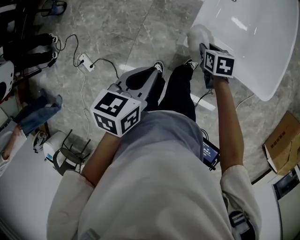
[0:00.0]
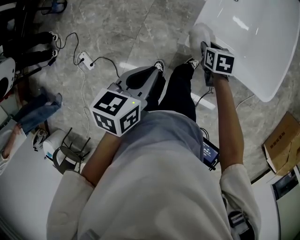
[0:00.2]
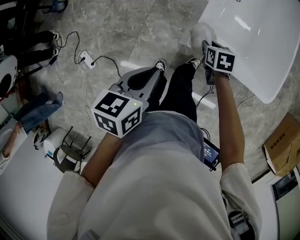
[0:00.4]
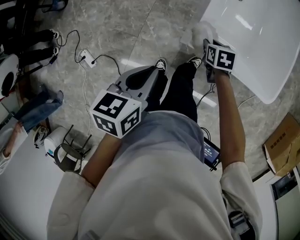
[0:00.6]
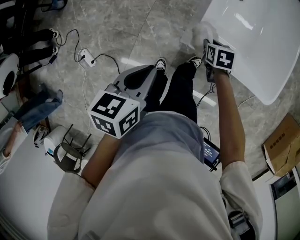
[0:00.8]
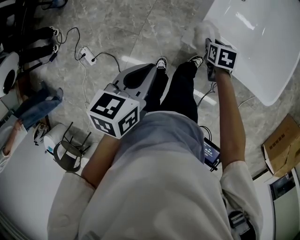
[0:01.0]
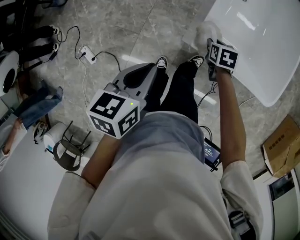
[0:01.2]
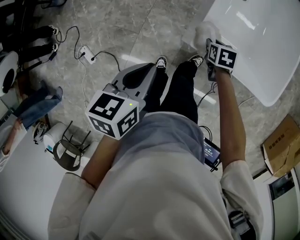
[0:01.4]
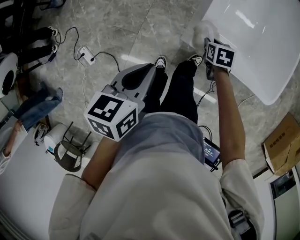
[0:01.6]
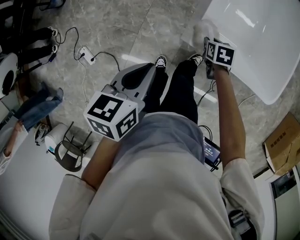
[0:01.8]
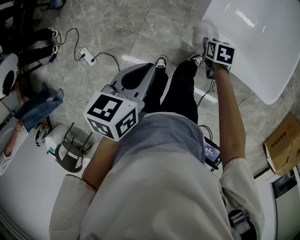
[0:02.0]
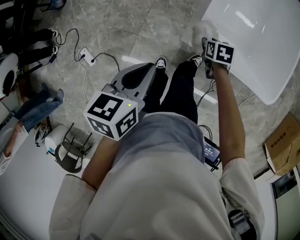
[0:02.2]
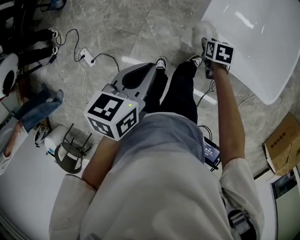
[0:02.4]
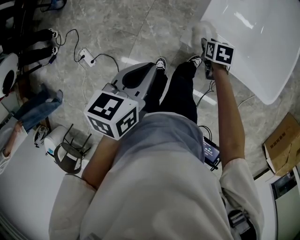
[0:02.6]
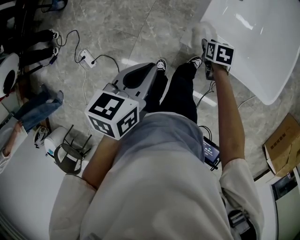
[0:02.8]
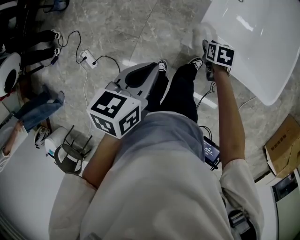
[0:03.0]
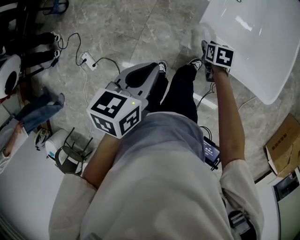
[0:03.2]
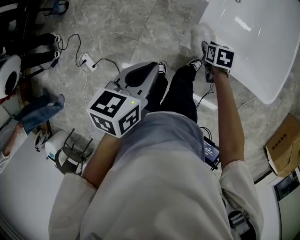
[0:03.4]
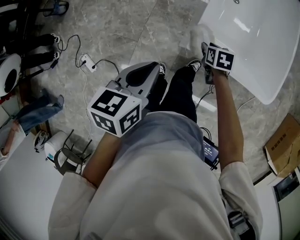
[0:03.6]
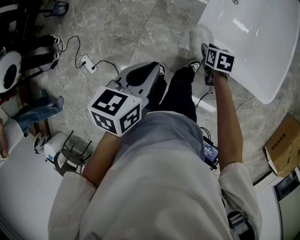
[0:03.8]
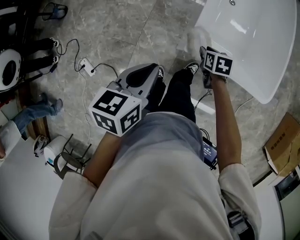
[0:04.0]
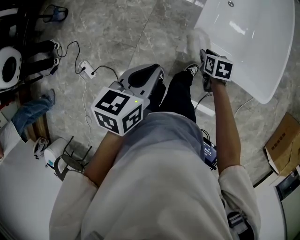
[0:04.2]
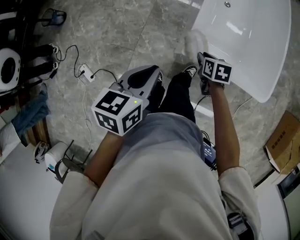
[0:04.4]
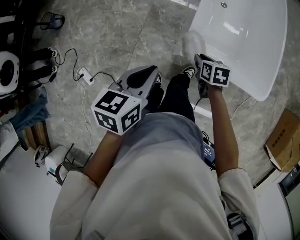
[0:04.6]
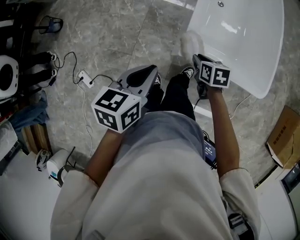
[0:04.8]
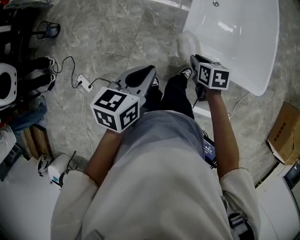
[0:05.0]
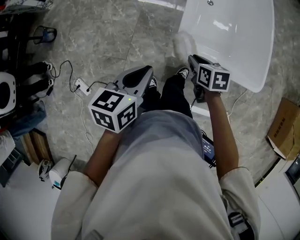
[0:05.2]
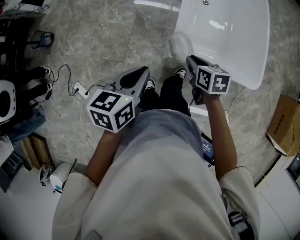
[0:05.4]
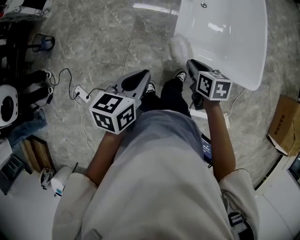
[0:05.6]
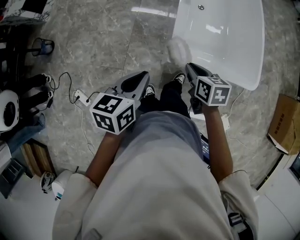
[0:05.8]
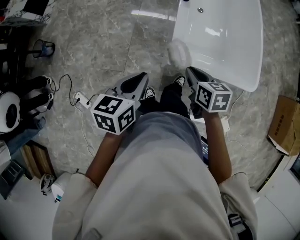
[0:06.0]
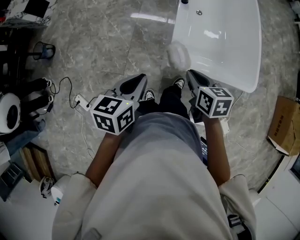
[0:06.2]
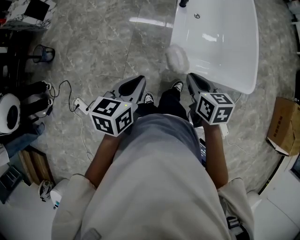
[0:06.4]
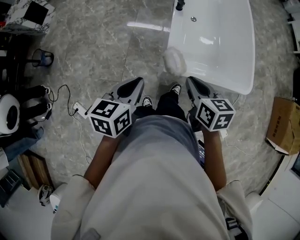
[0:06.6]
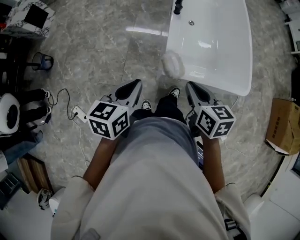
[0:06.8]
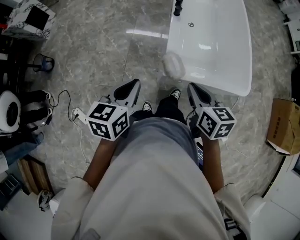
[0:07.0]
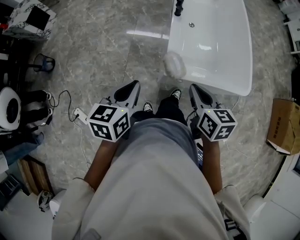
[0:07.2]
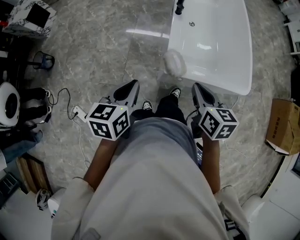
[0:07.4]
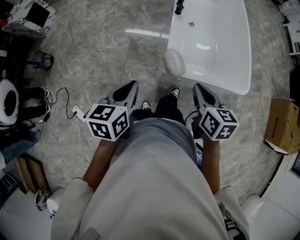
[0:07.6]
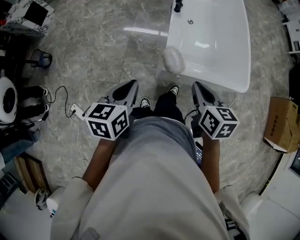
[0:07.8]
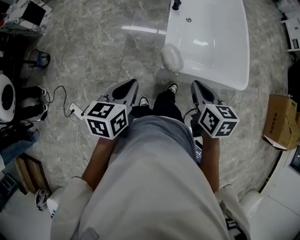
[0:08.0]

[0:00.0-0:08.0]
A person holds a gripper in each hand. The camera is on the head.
0.0 to 1.6 s: The right gripper shifts some 5 cm downward.
1.6 to 3.2 s: There are only small adjustments of the grippers.
3.2 to 4.8 s: The right gripper moves upward, roughly 10 cm.
4.8 to 6.4 s: The right gripper is displaced upward by about 15 cm.
6.4 to 8.0 s: The right gripper is displaced backward and upward by about 10 cm.

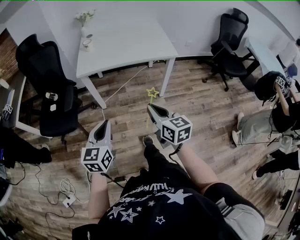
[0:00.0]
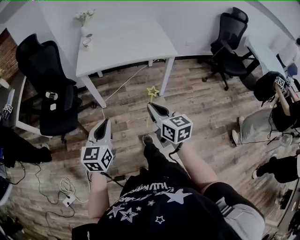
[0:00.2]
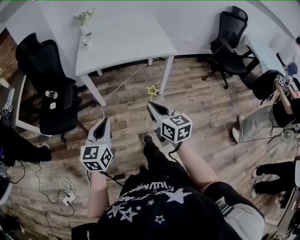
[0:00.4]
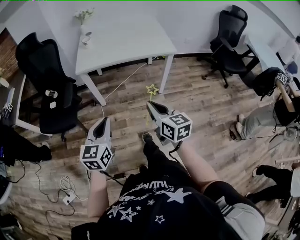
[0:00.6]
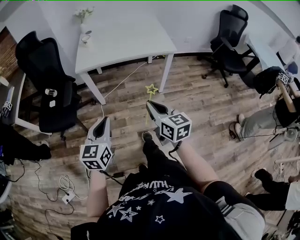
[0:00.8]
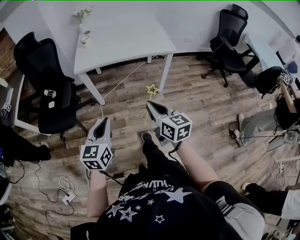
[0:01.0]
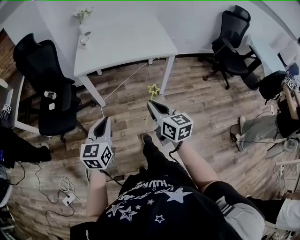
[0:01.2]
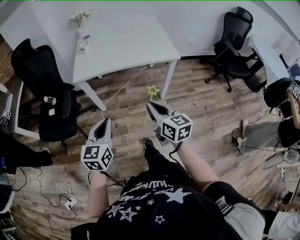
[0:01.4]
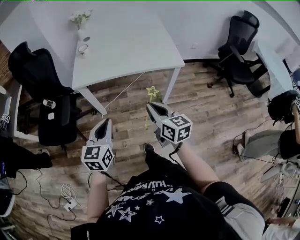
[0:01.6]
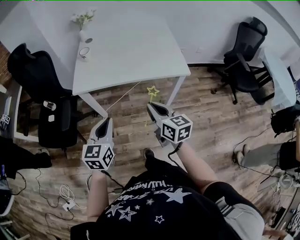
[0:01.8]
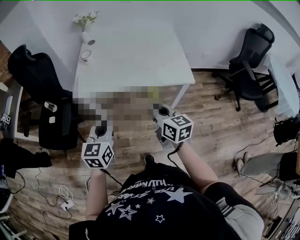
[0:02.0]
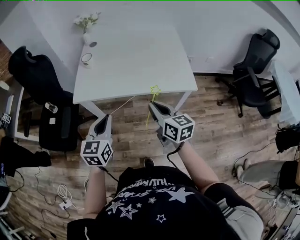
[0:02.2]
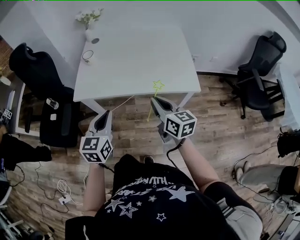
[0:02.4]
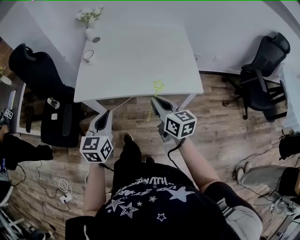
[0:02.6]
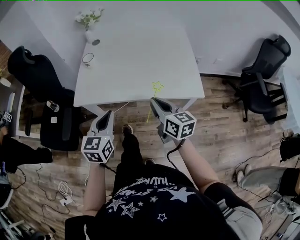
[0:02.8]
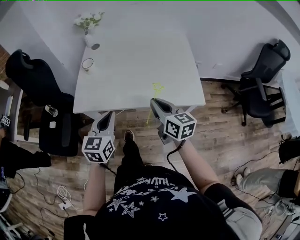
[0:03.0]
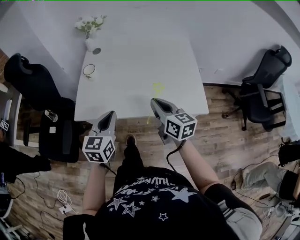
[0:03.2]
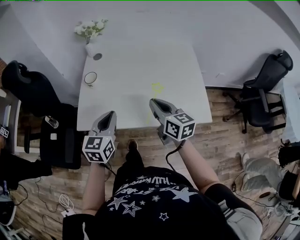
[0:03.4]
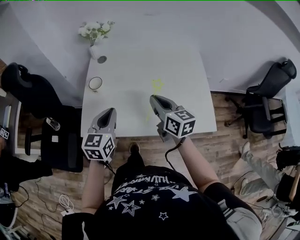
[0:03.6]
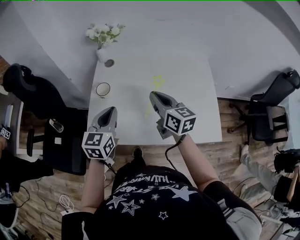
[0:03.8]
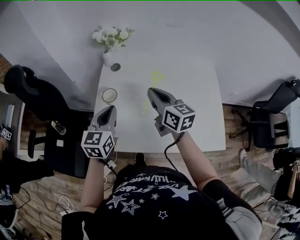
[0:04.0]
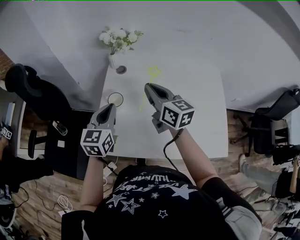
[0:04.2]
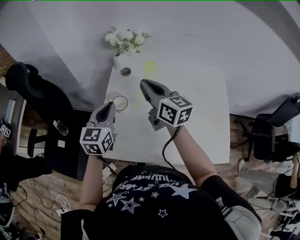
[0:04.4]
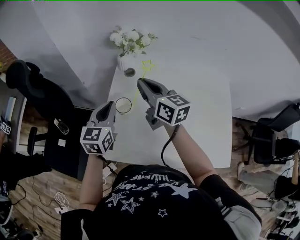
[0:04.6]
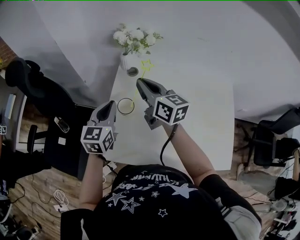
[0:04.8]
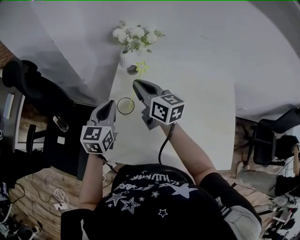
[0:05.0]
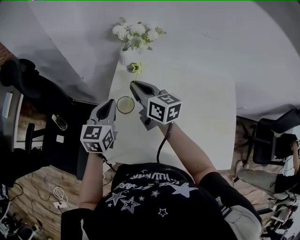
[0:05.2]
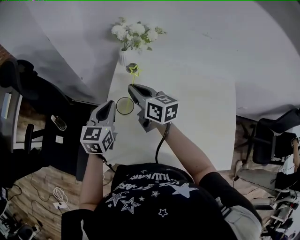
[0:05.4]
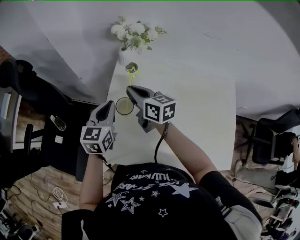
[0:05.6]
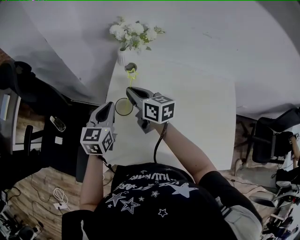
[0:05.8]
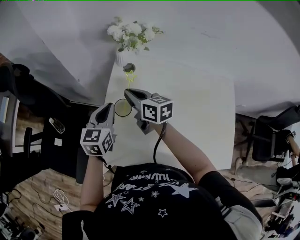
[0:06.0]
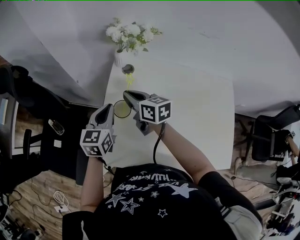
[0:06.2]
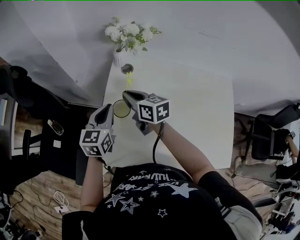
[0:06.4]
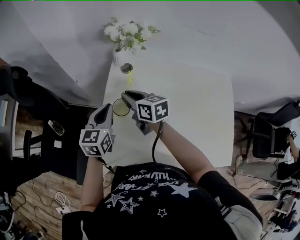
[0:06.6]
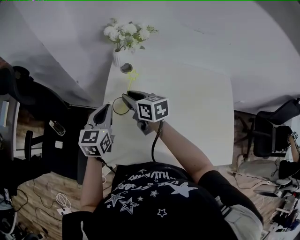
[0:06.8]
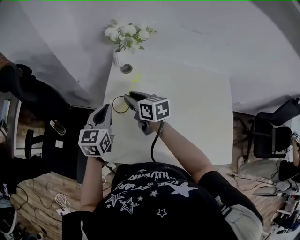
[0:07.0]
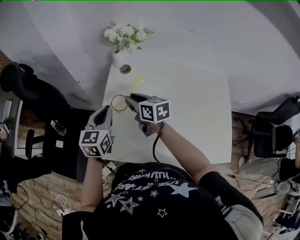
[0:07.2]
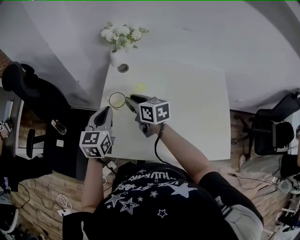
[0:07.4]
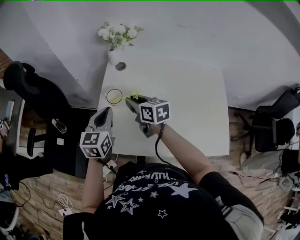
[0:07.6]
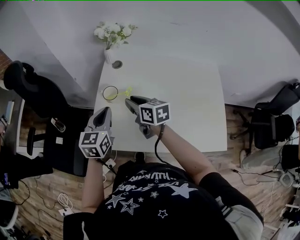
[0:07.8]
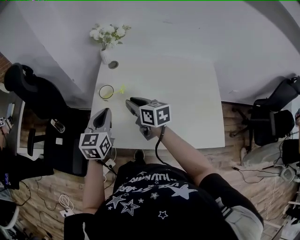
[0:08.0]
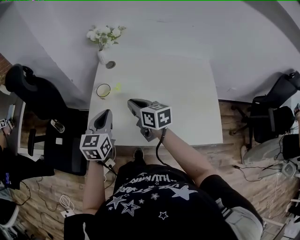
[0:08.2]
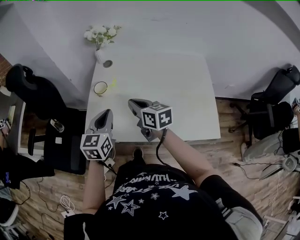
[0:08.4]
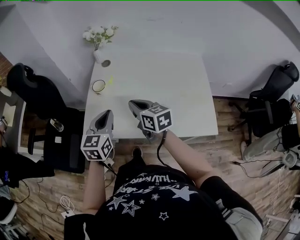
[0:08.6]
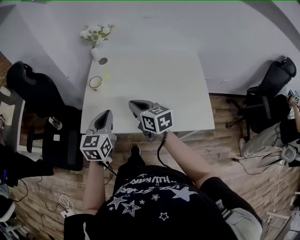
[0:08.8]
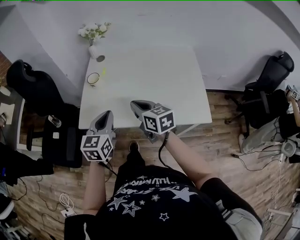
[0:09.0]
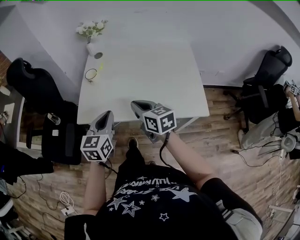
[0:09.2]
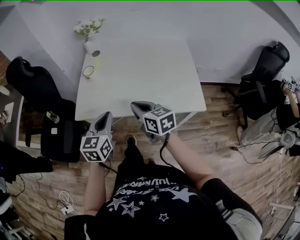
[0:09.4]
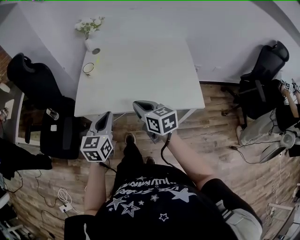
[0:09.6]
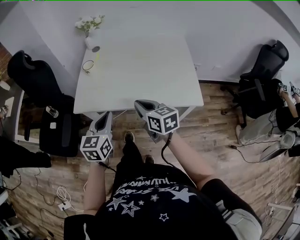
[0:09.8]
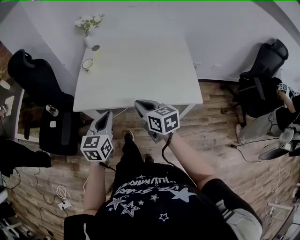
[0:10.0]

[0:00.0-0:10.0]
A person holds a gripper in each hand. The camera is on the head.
0.0 to 1.4 s: The grippers both shift forward by roughly 5 cm.
1.4 to 2.8 s: The two grippers go some 30 cm forward.
2.8 to 4.2 s: The right gripper travels forward and to the left by roughly 40 cm; the left gripper shifts some 35 cm forward.
4.2 to 5.8 s: The left gripper travels forward and downward by about 10 cm. The right gripper is displaced to the left, downward and forward by about 20 cm.
5.8 to 7.2 s: The right gripper ends up about 5 cm from where it was, and opens its fingers.
7.2 to 8.6 s: The right gripper goes some 20 cm backward, and closes its fingers; the left gripper goes about 20 cm backward and to the right.
8.6 to 10.0 s: The grippers both shift backward by approximately 20 cm.

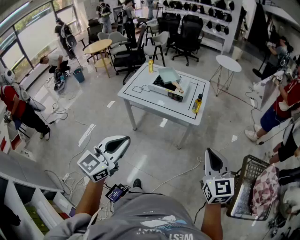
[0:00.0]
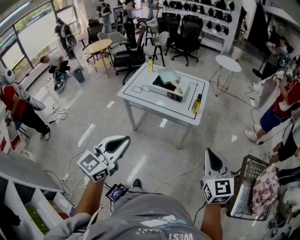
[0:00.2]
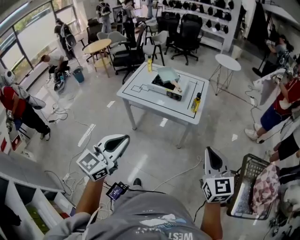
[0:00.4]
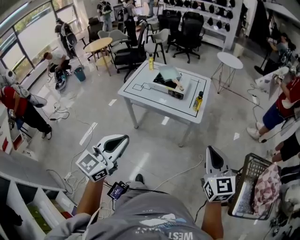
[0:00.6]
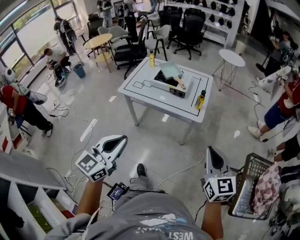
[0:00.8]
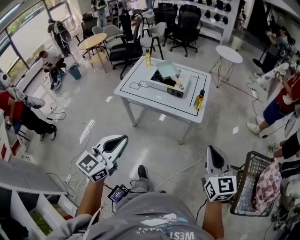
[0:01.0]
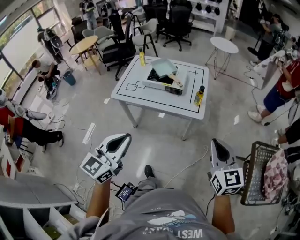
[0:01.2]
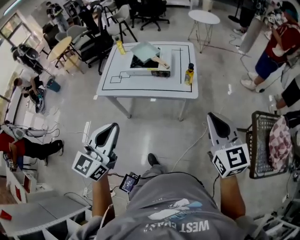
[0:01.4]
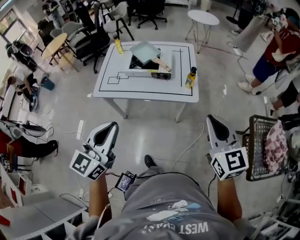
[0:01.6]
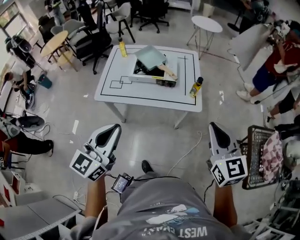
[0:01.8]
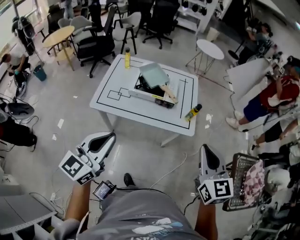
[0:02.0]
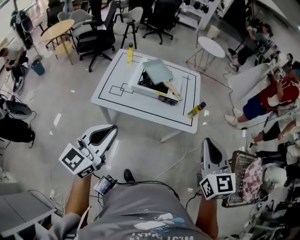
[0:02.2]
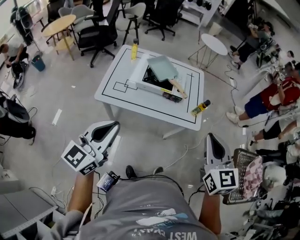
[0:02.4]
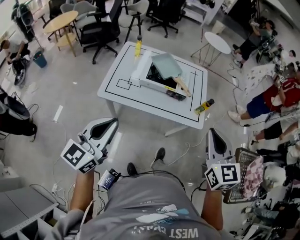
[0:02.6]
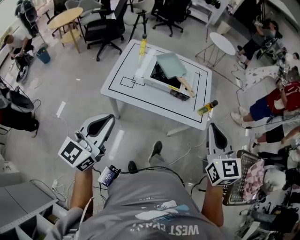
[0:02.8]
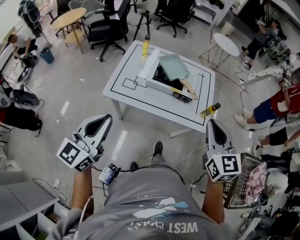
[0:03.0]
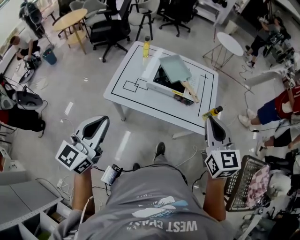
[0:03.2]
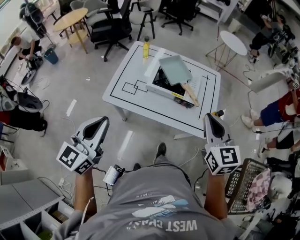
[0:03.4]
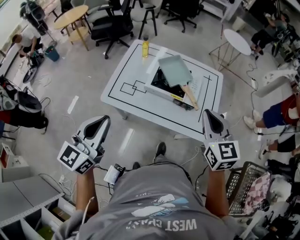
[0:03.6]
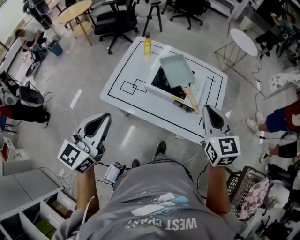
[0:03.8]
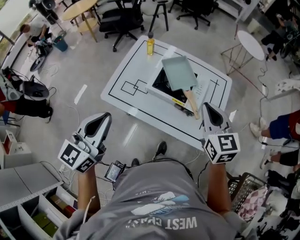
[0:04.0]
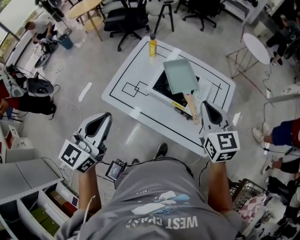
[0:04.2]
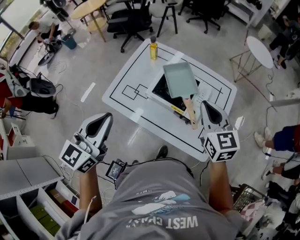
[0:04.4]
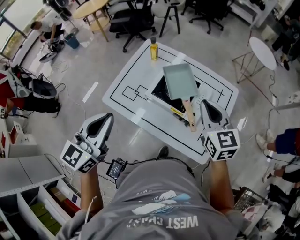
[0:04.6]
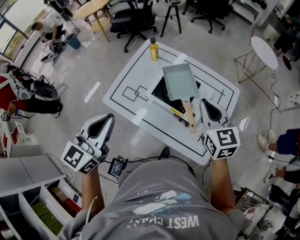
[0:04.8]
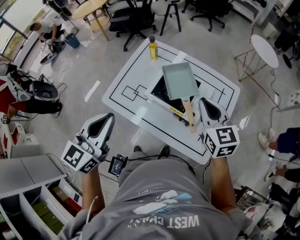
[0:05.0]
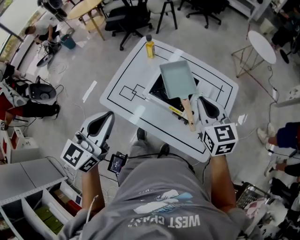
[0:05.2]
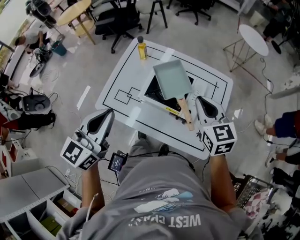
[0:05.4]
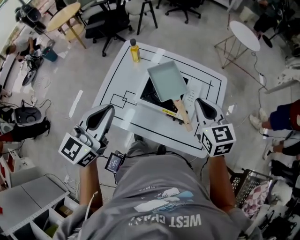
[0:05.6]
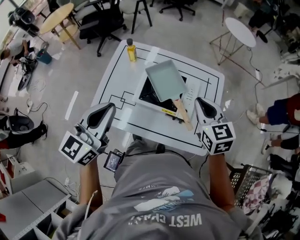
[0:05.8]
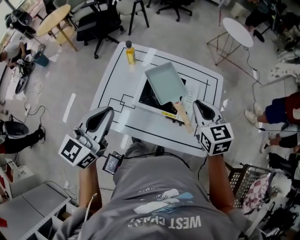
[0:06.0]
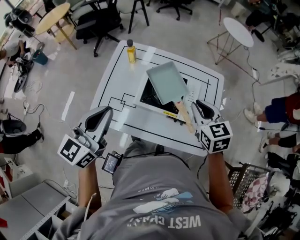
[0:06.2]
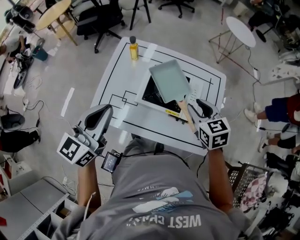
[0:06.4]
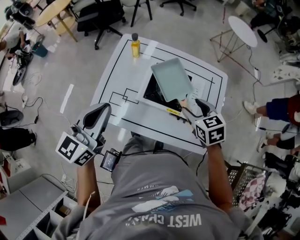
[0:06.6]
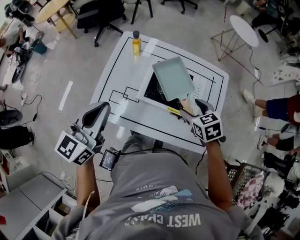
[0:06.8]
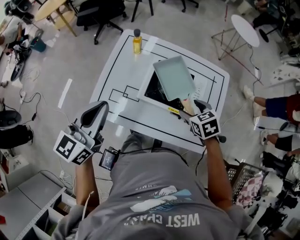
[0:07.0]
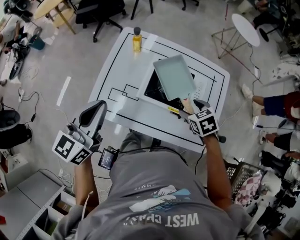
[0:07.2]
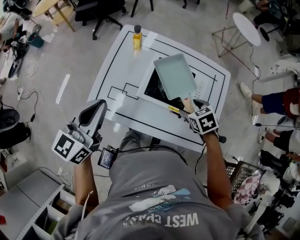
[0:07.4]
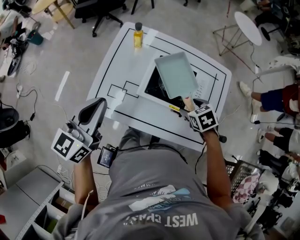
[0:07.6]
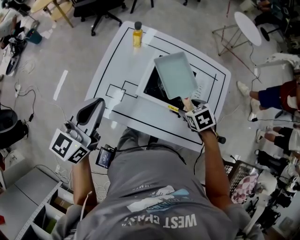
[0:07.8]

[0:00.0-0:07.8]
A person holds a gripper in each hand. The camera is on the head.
0.0 to 1.6 s: The two grippers go about 20 cm forward and to the left.
1.6 to 3.2 s: Both grippers travel together to the left and forward, approximately 20 cm.
3.2 to 4.6 s: The right gripper heads forward, covering approximately 25 cm, and rotates roughly 20 degrees. The left gripper heads forward and to the right, covering roughly 20 cm.
4.6 to 6.2 s: The left gripper goes some 10 cm forward, while the right gripper goes approximately 5 cm downward.
6.2 to 7.8 s: The right gripper is displaced downward by about 20 cm, angles its fingers downward, by some 40 degrees, and opens; the left gripper travels to the left by some 5 cm.
